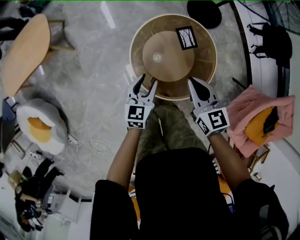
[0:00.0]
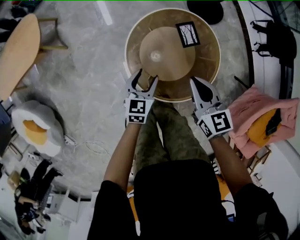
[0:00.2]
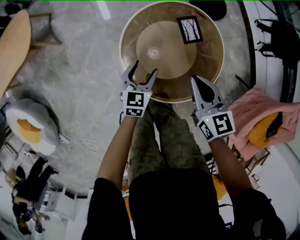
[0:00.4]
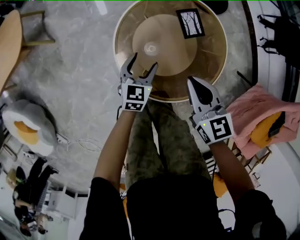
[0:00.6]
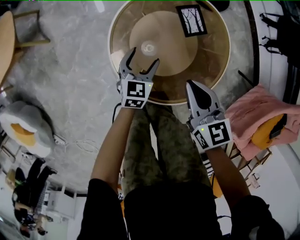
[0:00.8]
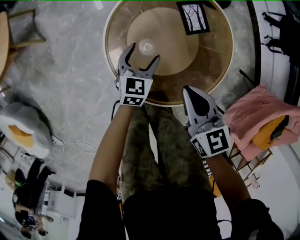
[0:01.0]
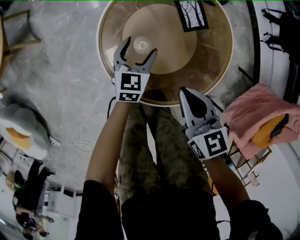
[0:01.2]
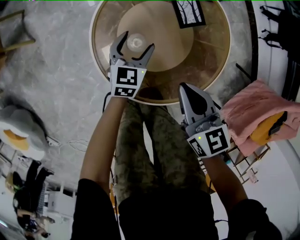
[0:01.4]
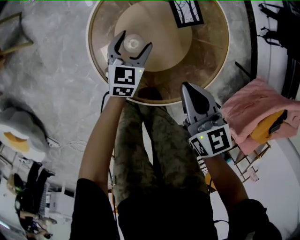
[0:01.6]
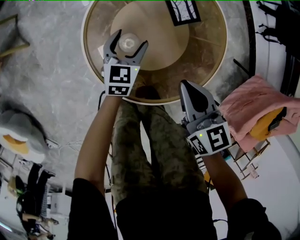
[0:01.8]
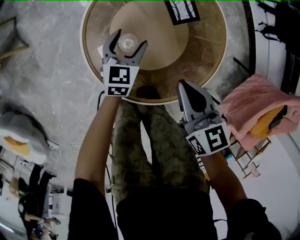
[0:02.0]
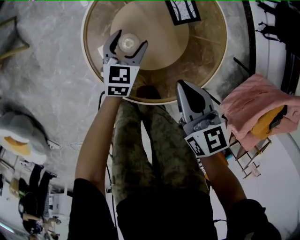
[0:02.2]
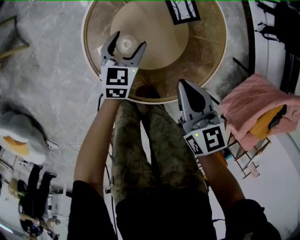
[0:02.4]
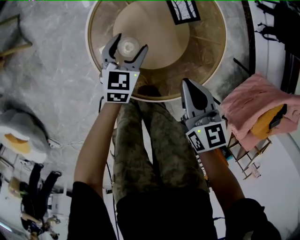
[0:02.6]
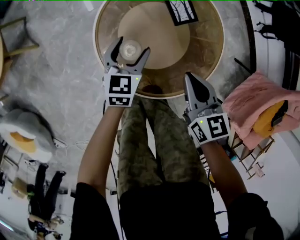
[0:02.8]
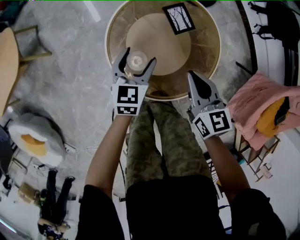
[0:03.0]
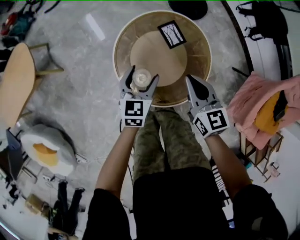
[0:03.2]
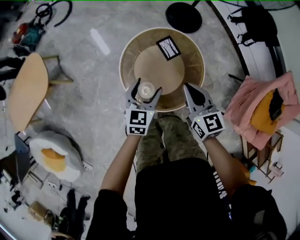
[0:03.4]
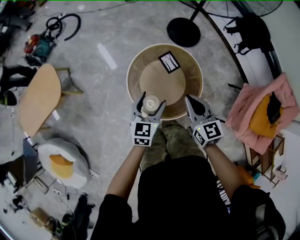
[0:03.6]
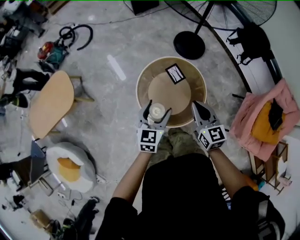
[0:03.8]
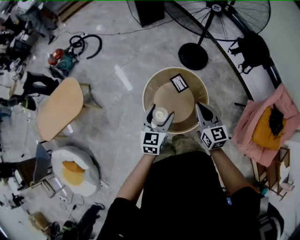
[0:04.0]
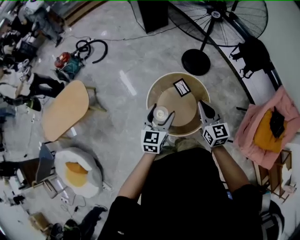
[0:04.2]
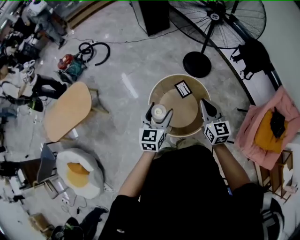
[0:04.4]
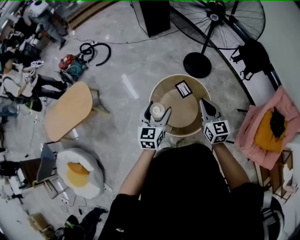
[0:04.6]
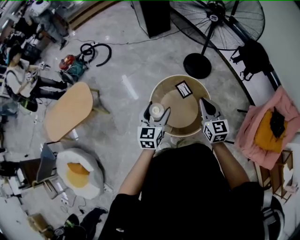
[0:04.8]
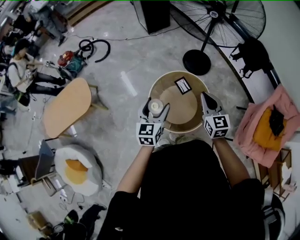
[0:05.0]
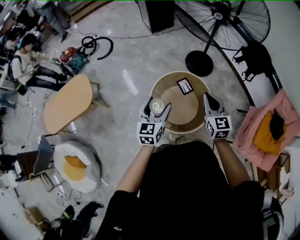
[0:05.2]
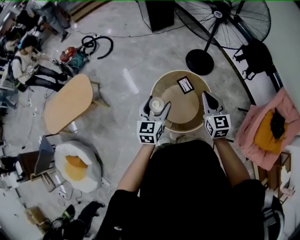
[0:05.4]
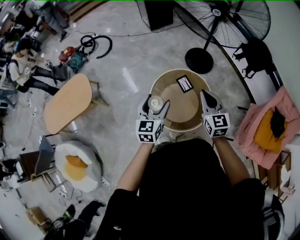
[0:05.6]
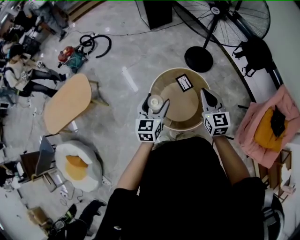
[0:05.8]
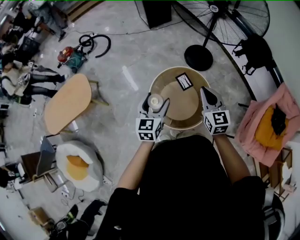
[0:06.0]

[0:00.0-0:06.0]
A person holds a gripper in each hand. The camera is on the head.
0:00.0 to 0:01.6: Both grippers move downward, about 30 cm. The left gripper opens up.
0:01.6 to 0:03.0: The left gripper shifts approximately 15 cm upward; the right gripper shifts approximately 10 cm upward.
0:03.0 to 0:04.4: Both grippers travel together upward, approximately 50 cm.
0:04.4 to 0:06.0: The grippers make only small movements.

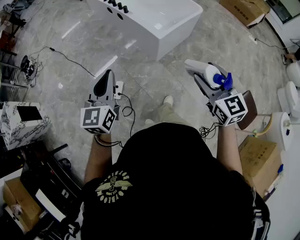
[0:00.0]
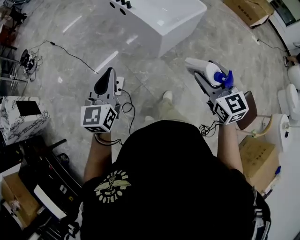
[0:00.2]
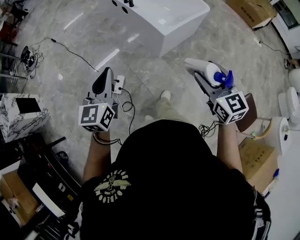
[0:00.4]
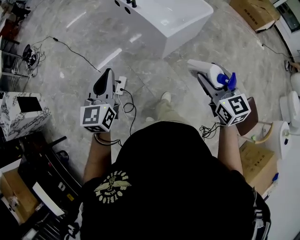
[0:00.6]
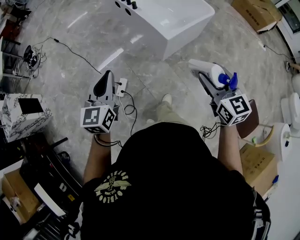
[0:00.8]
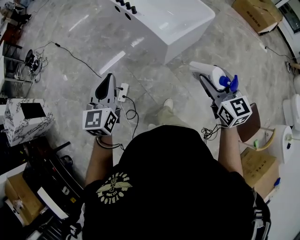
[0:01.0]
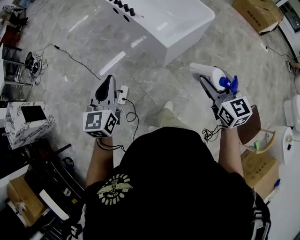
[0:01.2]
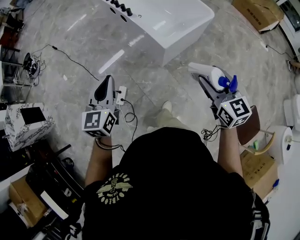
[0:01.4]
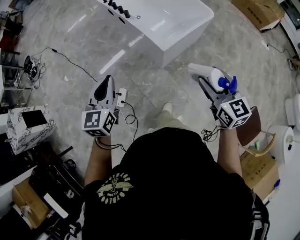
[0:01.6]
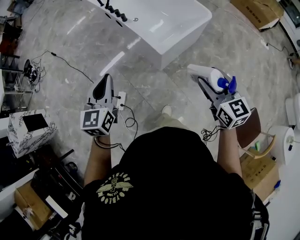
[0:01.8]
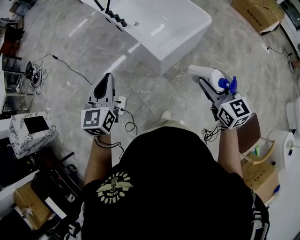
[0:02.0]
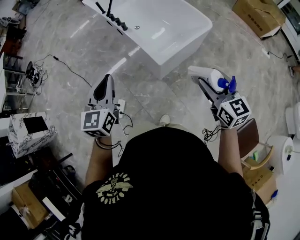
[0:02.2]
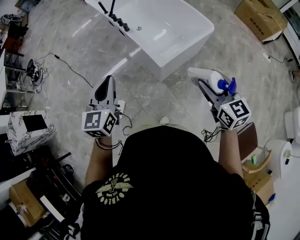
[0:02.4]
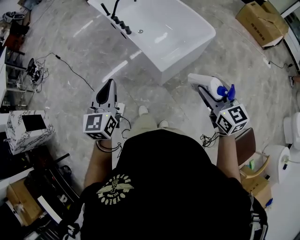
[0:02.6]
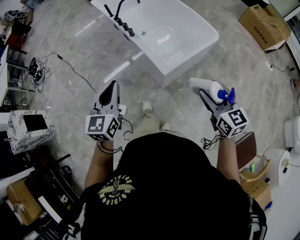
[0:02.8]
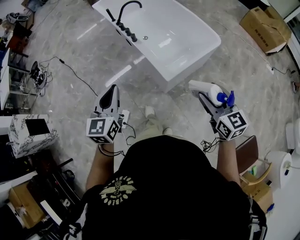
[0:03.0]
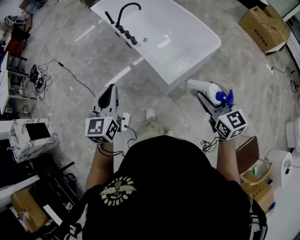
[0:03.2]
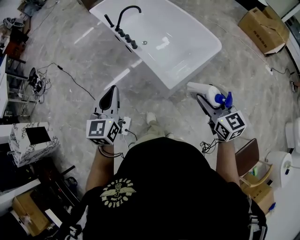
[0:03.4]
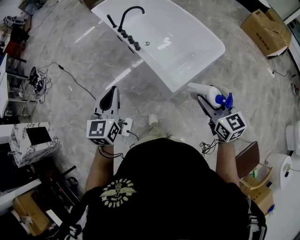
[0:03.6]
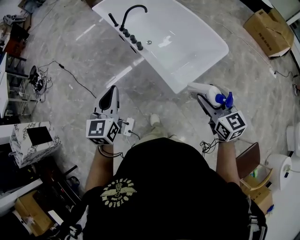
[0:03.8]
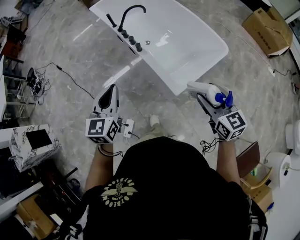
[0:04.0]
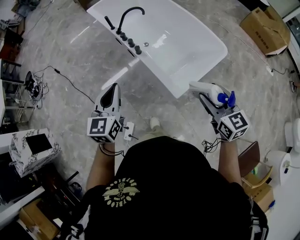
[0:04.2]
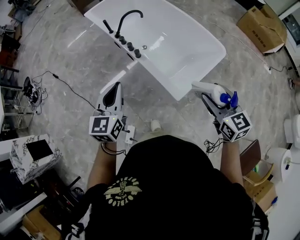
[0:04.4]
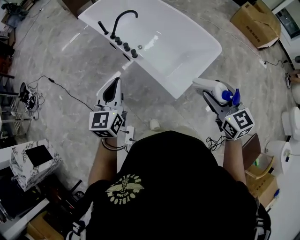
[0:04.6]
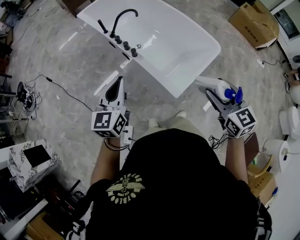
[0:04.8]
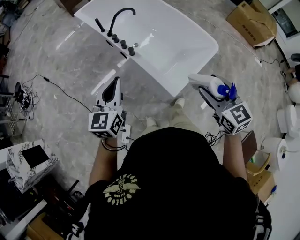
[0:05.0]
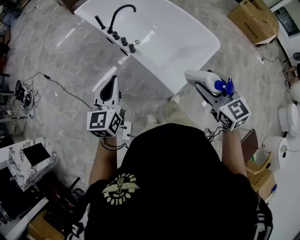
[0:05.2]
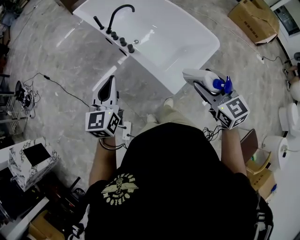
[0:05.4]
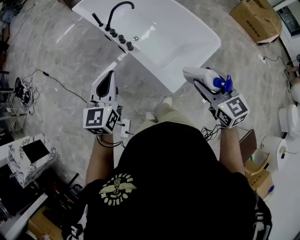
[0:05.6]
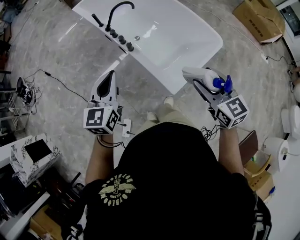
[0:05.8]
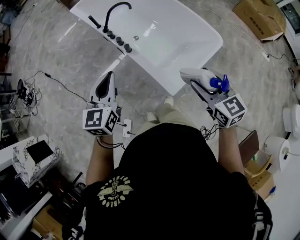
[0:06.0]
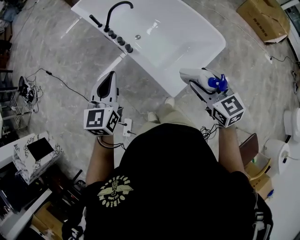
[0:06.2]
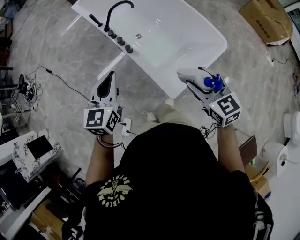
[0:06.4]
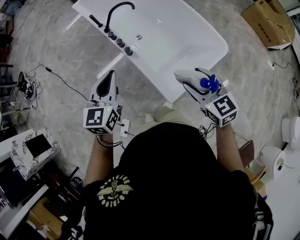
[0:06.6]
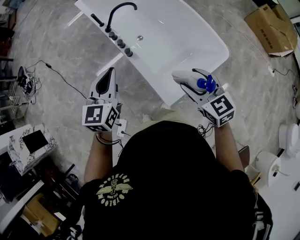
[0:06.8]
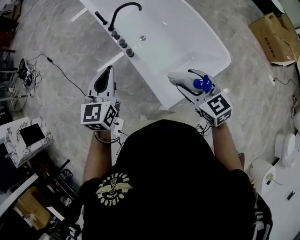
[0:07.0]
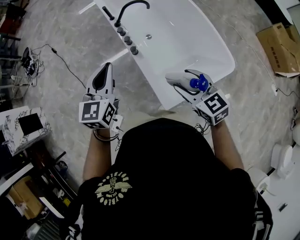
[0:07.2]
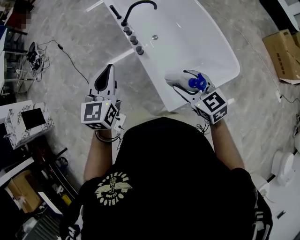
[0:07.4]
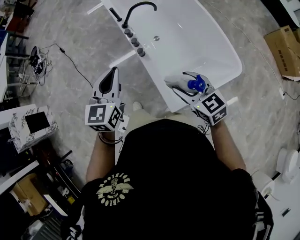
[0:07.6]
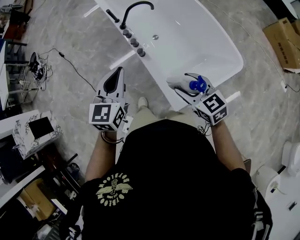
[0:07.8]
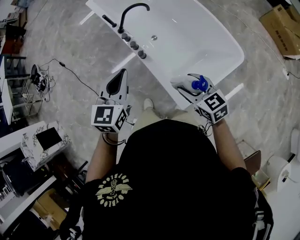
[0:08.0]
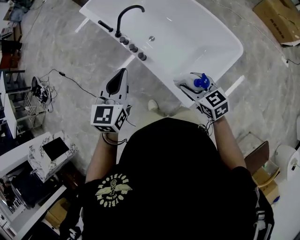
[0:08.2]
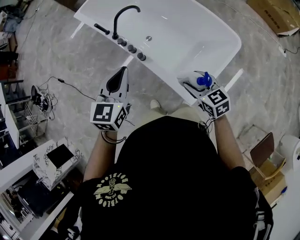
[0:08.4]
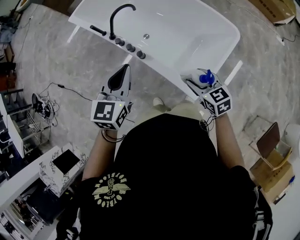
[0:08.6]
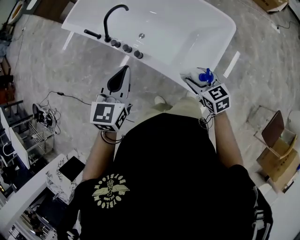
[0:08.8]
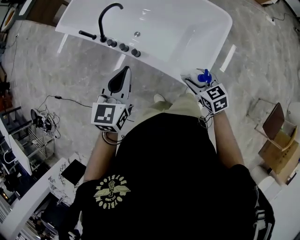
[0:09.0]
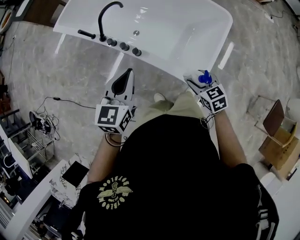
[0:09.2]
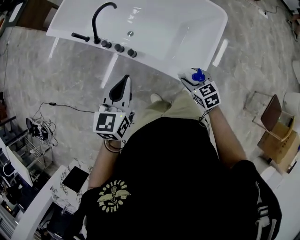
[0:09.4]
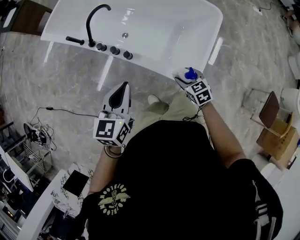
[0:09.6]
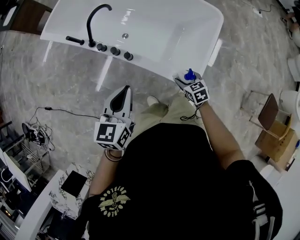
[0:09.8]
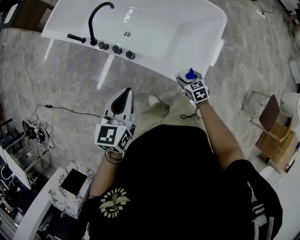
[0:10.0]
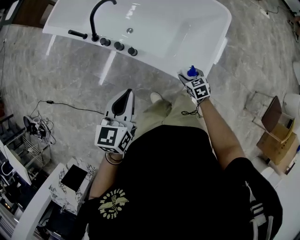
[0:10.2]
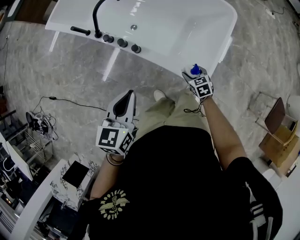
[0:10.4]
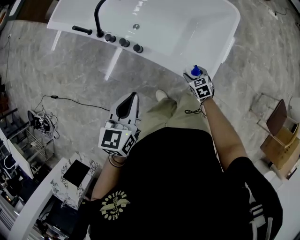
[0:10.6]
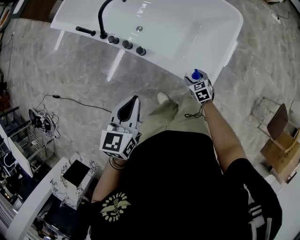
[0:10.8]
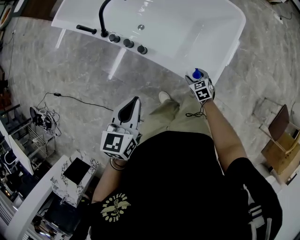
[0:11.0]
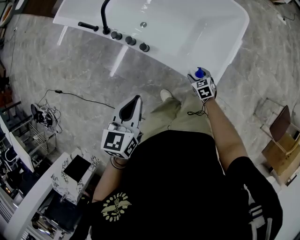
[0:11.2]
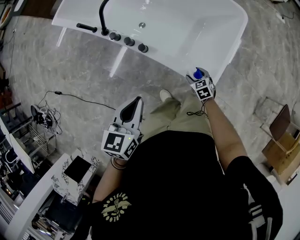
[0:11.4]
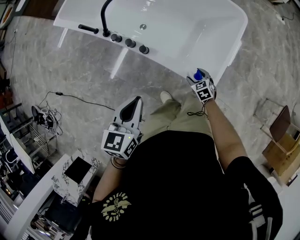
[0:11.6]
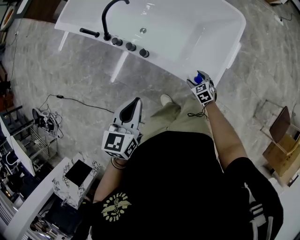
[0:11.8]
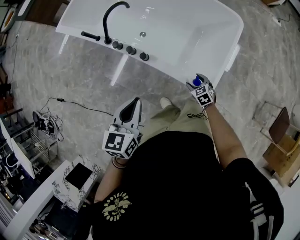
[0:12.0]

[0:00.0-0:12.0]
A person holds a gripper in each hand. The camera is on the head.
0:00.0 to 0:01.6: The left gripper heads forward, covering about 20 cm; the right gripper is displaced forward and to the right by some 20 cm.
0:01.6 to 0:03.0: Both grippers travel together forward, roughly 10 cm.
0:03.0 to 0:04.4: The left gripper shifts about 20 cm forward. The right gripper shifts about 20 cm forward and to the left.
0:04.4 to 0:06.0: Both grippers travel together forward, some 5 cm.
0:06.0 to 0:07.6: The left gripper is displaced forward by about 10 cm. Meanwhile the right gripper shifts about 15 cm forward and downward, and rotates roughly 30 degrees.
0:07.6 to 0:09.0: The left gripper travels downward by approximately 5 cm, and rotates approximately 40 degrees. Meanwhile the right gripper travels downward by approximately 15 cm, and changes its angle by approximately 40 degrees.
0:09.0 to 0:10.4: The right gripper heads downward, covering some 20 cm. The left gripper goes approximately 10 cm downward and backward.
0:10.4 to 0:12.0: The grippers stay close to where they were, moving slightly.

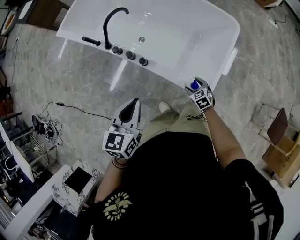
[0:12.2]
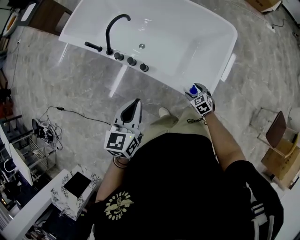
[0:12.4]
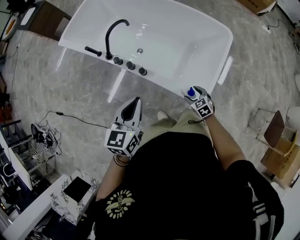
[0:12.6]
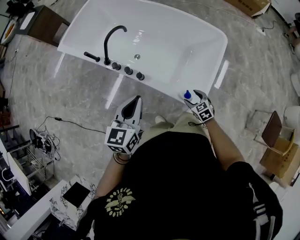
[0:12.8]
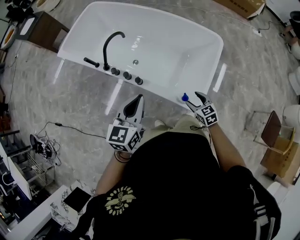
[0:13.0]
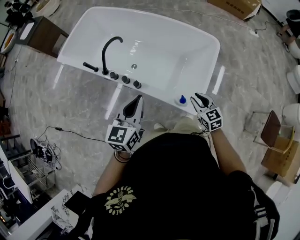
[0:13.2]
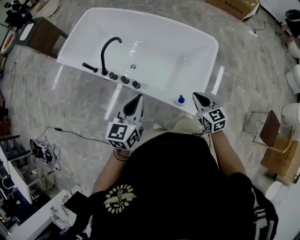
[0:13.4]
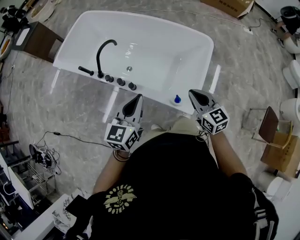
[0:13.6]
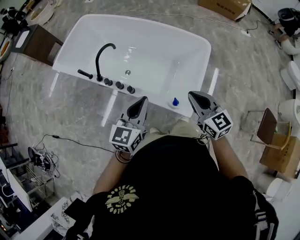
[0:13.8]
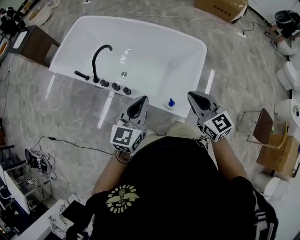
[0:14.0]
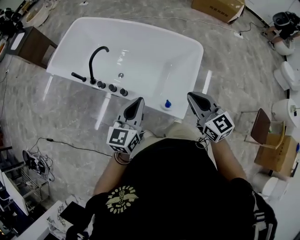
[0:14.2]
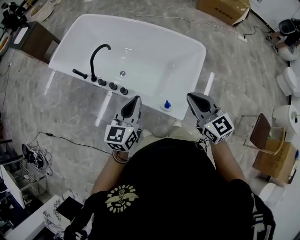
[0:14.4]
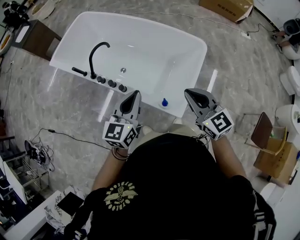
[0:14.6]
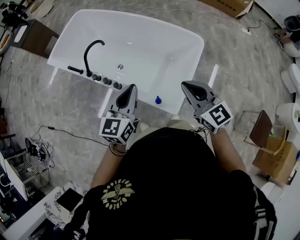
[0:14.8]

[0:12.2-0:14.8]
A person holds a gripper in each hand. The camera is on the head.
0:12.2 to 0:13.4: The left gripper is displaced upward and to the right by some 10 cm; the right gripper shifts some 25 cm upward, turns by some 30 degrees, and closes up.
0:13.4 to 0:14.8: The left gripper shifts roughly 10 cm to the right. The right gripper is displaced upward by about 15 cm.

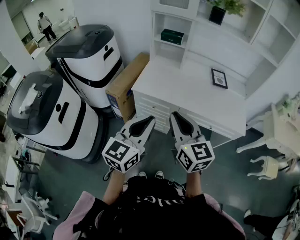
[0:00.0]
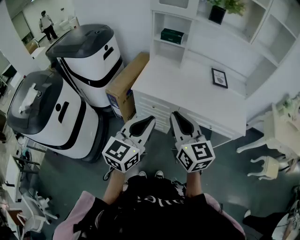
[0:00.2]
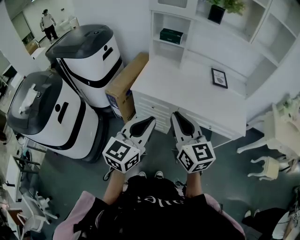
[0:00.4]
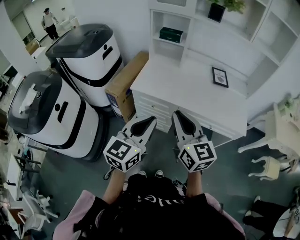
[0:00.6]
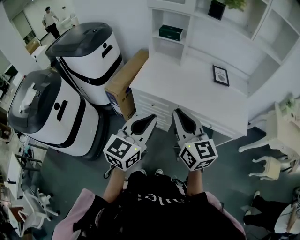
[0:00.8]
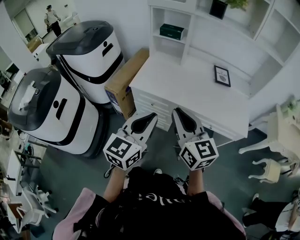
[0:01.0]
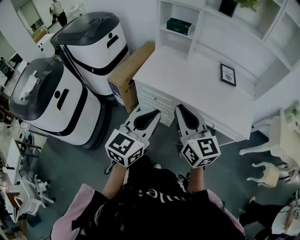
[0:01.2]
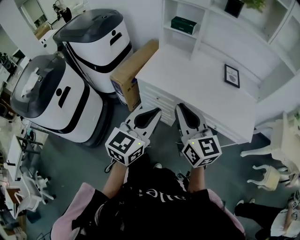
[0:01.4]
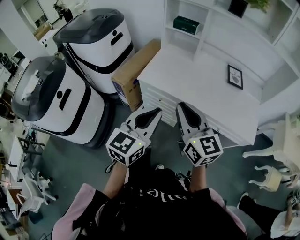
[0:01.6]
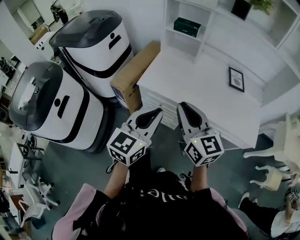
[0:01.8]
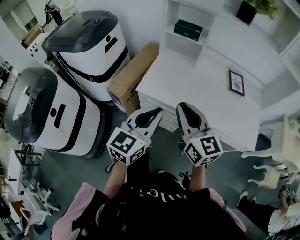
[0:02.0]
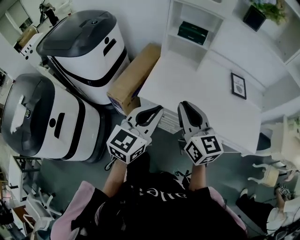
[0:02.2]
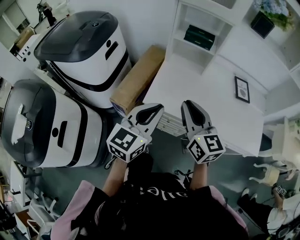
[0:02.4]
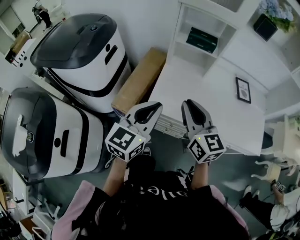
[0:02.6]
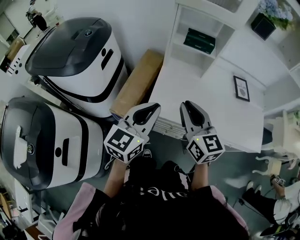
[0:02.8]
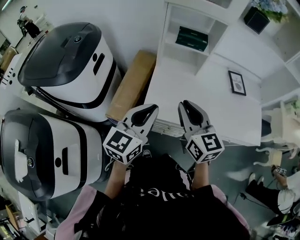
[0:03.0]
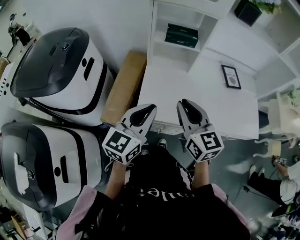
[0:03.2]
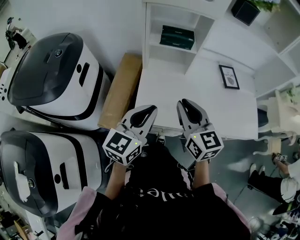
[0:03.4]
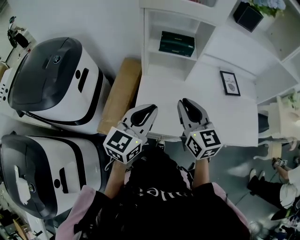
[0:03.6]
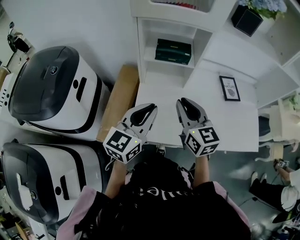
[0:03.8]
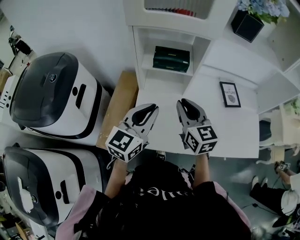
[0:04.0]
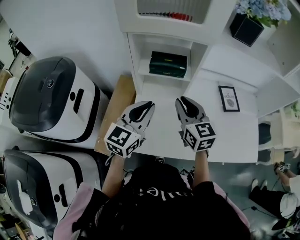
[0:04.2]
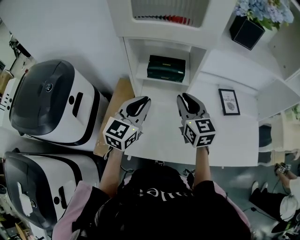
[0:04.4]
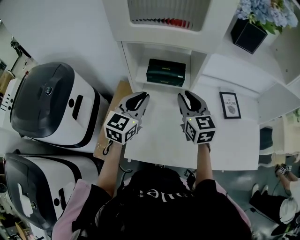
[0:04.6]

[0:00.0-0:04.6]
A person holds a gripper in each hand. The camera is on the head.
0:00.0 to 0:01.6: Both grippers travel together forward, roughly 5 cm.
0:01.6 to 0:03.0: The grippers both shift forward and to the left by roughly 30 cm.
0:03.0 to 0:04.6: The two grippers go approximately 30 cm forward.
